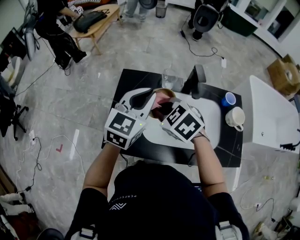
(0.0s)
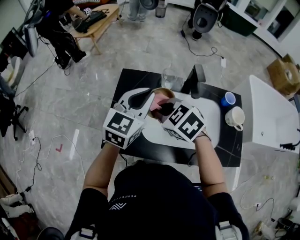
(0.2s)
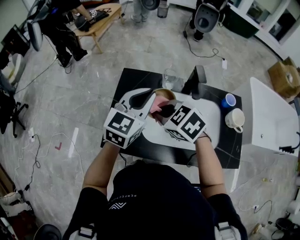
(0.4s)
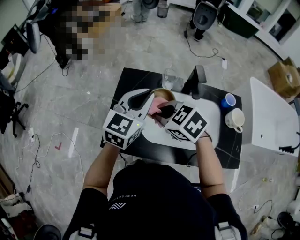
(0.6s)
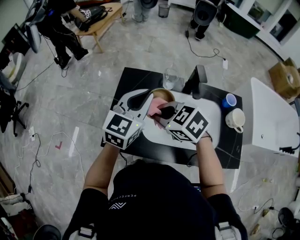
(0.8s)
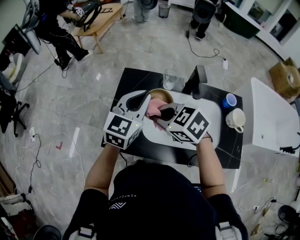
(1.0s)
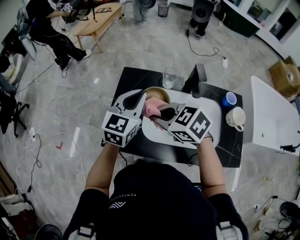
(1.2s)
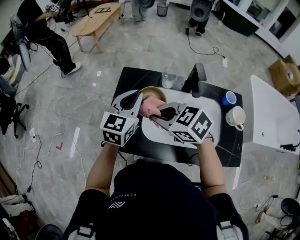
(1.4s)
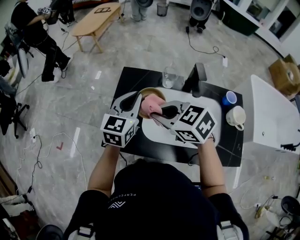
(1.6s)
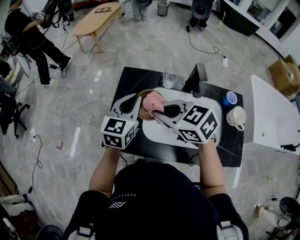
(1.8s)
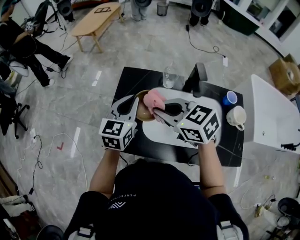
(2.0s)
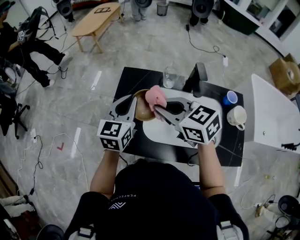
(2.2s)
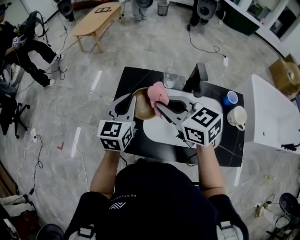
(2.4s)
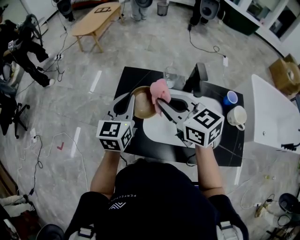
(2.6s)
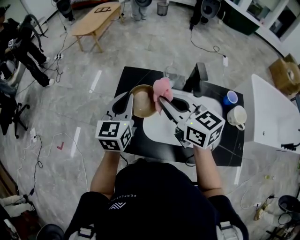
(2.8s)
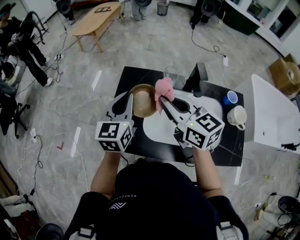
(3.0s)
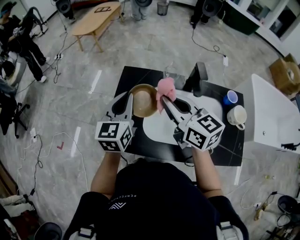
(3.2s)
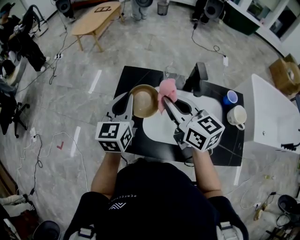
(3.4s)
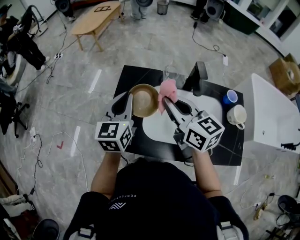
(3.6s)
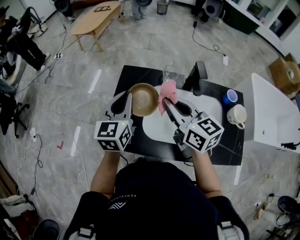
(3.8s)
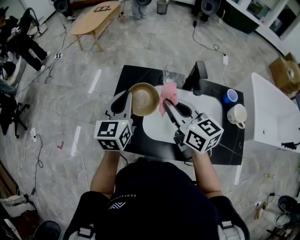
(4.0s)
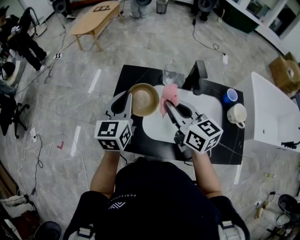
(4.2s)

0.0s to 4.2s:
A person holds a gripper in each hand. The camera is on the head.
0.0s to 1.4s: The left gripper ends up about 5 cm from where it was.
1.4s to 2.8s: The right gripper moves upward, approximately 5 cm, and changes its angle by approximately 40 degrees.
2.8s to 4.2s: The grippers move only a little.

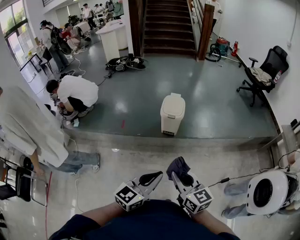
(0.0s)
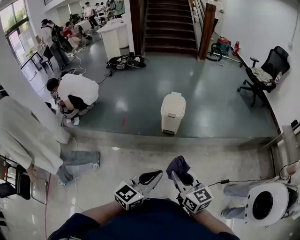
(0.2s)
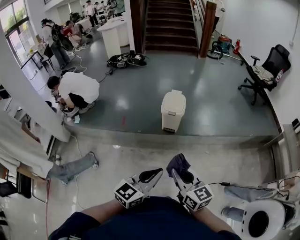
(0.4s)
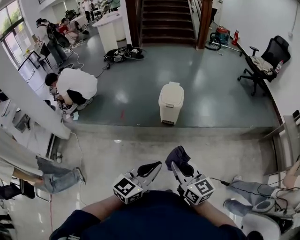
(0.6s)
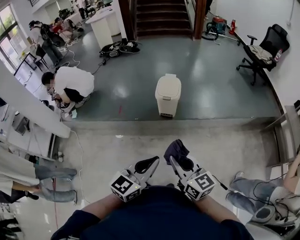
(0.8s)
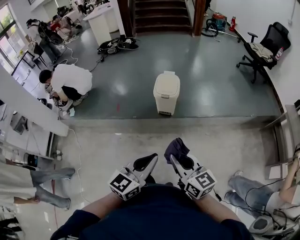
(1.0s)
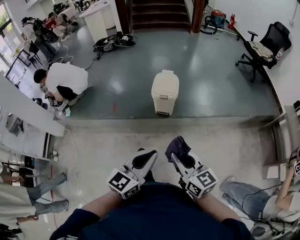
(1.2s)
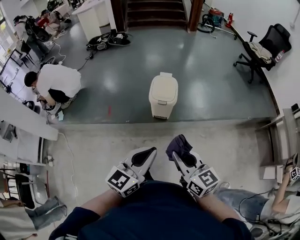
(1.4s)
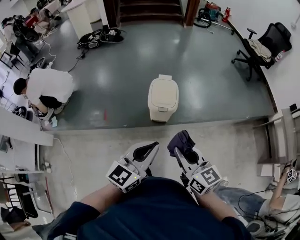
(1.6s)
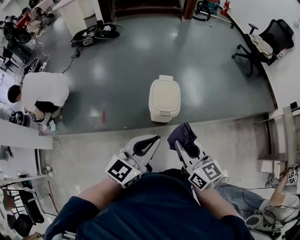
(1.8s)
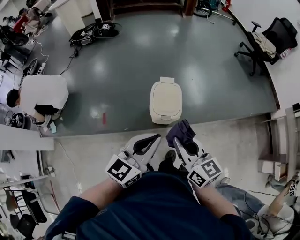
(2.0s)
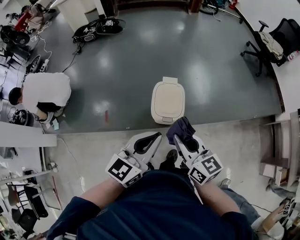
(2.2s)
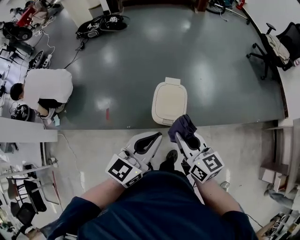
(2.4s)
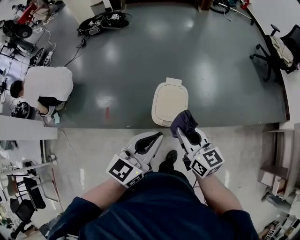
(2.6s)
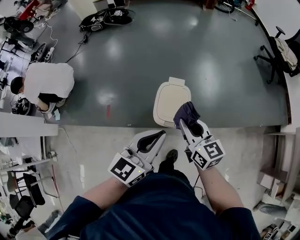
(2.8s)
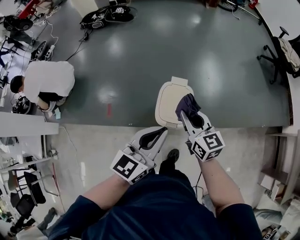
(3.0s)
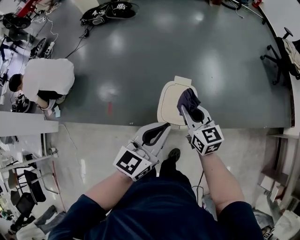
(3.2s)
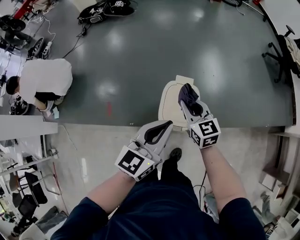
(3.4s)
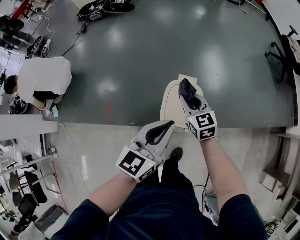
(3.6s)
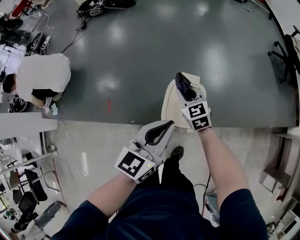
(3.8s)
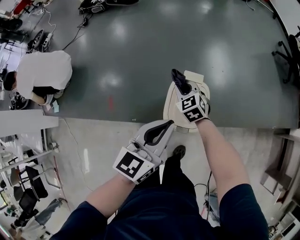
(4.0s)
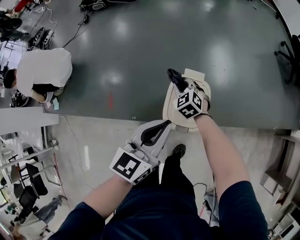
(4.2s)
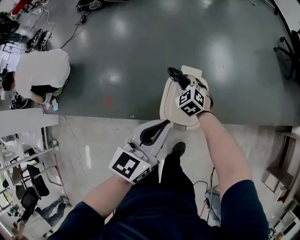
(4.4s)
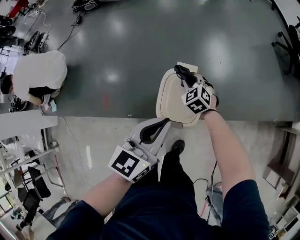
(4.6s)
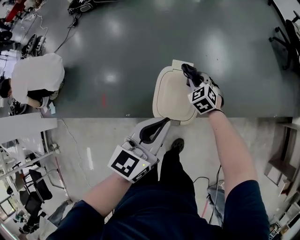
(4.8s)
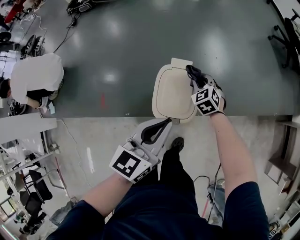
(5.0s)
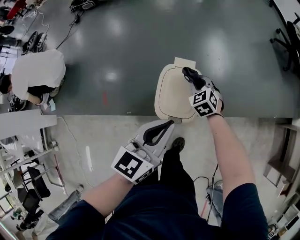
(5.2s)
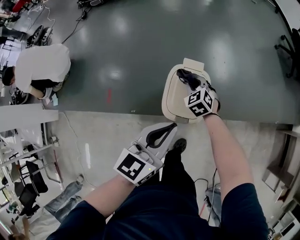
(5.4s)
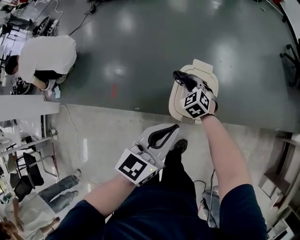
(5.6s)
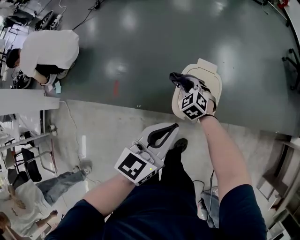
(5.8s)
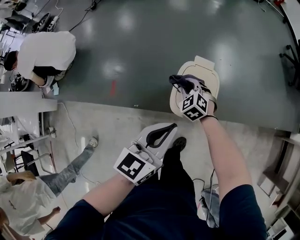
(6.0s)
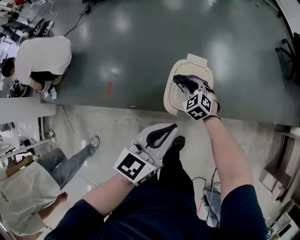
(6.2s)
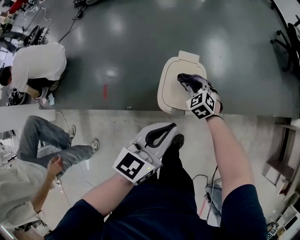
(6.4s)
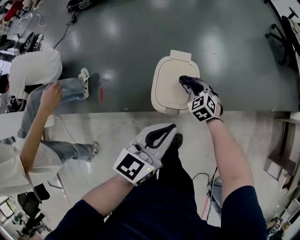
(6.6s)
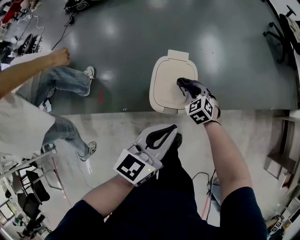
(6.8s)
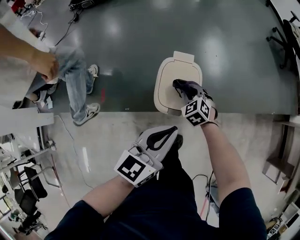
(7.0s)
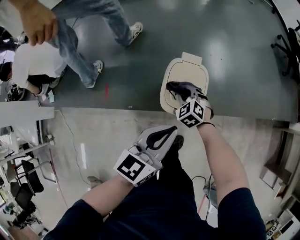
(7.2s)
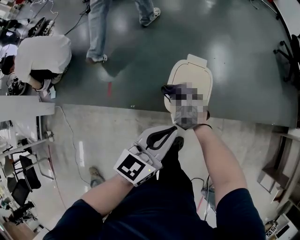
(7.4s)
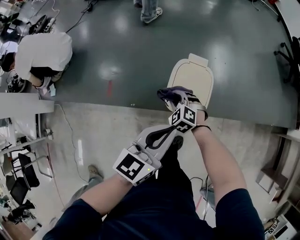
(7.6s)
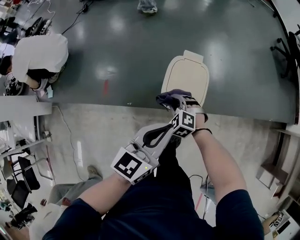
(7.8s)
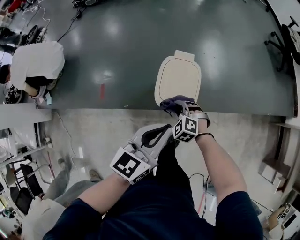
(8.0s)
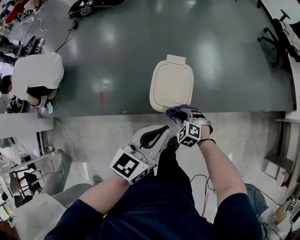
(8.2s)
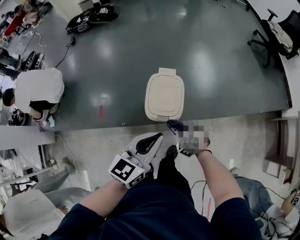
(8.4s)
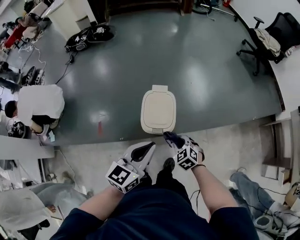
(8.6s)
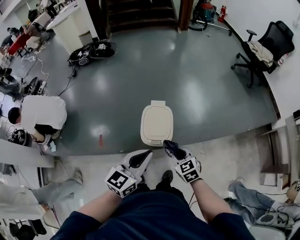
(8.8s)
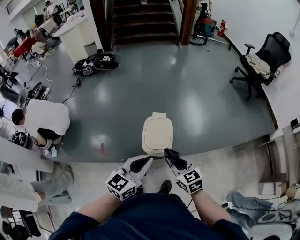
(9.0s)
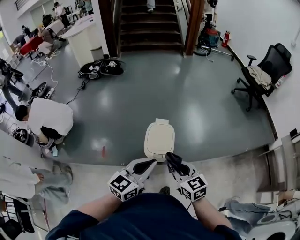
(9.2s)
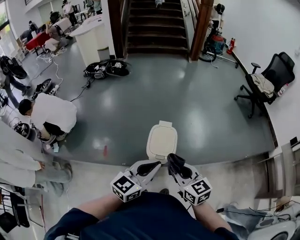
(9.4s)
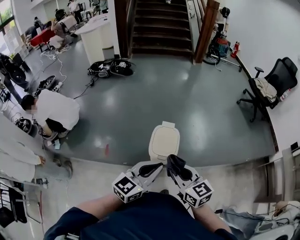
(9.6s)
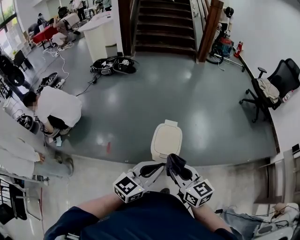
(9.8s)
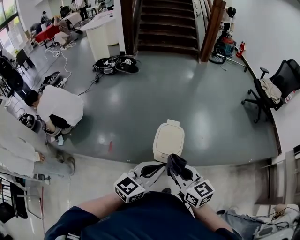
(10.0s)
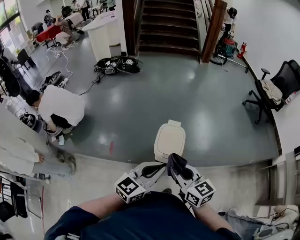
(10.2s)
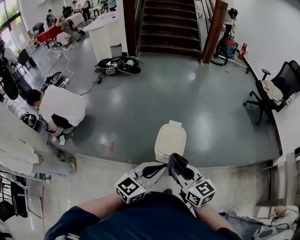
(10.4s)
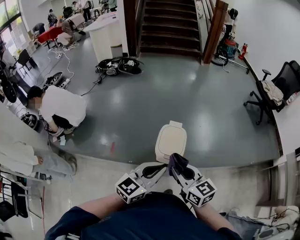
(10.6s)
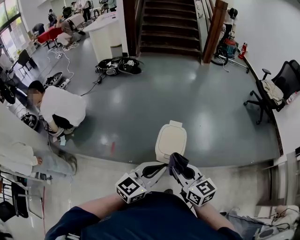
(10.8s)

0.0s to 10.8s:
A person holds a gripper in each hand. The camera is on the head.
0.0s to 1.6s: The two grippers go roughly 30 cm forward.
1.6s to 3.0s: Both grippers travel together forward, some 30 cm.
3.0s to 4.6s: The left gripper moves downward and forward, approximately 15 cm. Meanwhile the right gripper shifts roughly 30 cm downward and forward, and swivels some 50 degrees.
4.6s to 6.2s: The left gripper shifts some 5 cm backward; the right gripper swings left and right, roughly 15 cm each way, with 2 reversals.
6.2s to 7.8s: The right gripper goes roughly 10 cm backward, and travels to the right and back again, about 10 cm each way.
7.8s to 9.2s: The right gripper shifts some 35 cm upward, backward and to the right, and twists about 50 degrees clockwise, seen from behind. Meanwhile the left gripper is displaced upward by some 15 cm.
9.2s to 10.8s: The right gripper heads upward, covering roughly 5 cm.

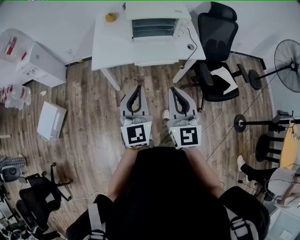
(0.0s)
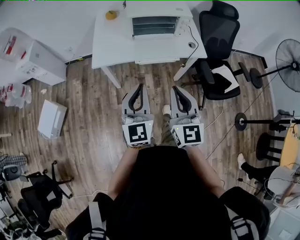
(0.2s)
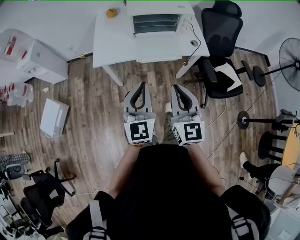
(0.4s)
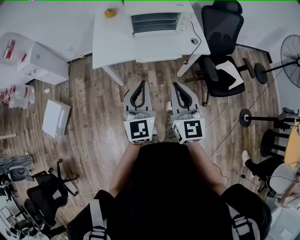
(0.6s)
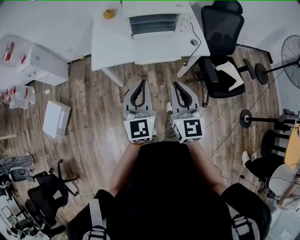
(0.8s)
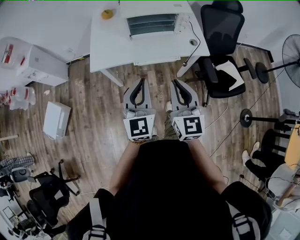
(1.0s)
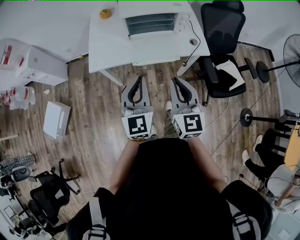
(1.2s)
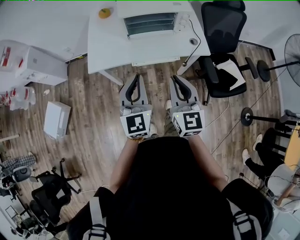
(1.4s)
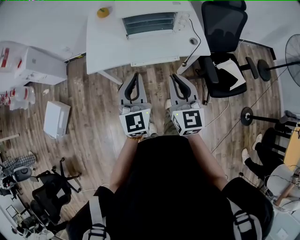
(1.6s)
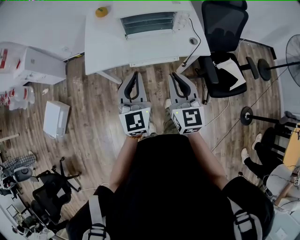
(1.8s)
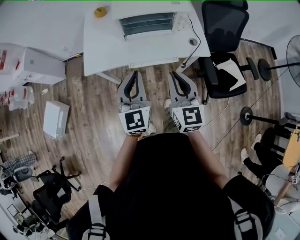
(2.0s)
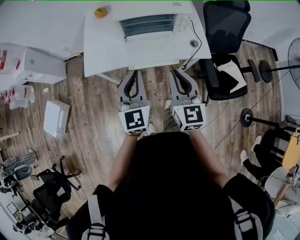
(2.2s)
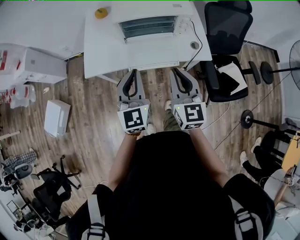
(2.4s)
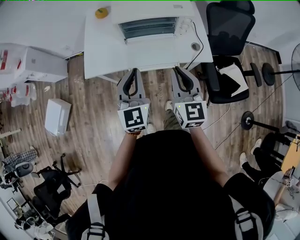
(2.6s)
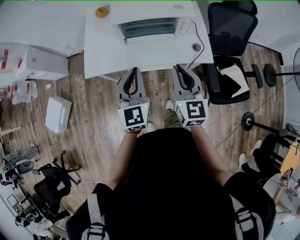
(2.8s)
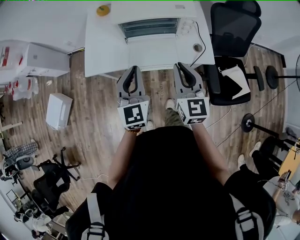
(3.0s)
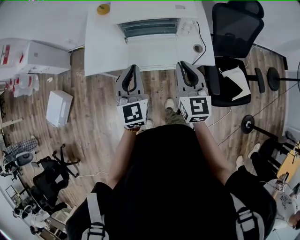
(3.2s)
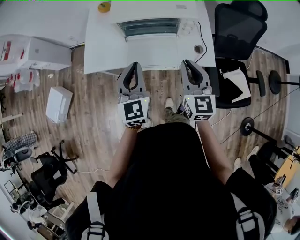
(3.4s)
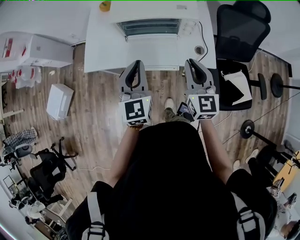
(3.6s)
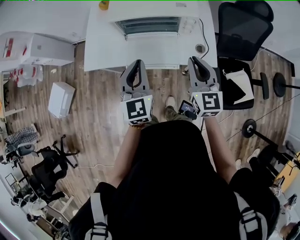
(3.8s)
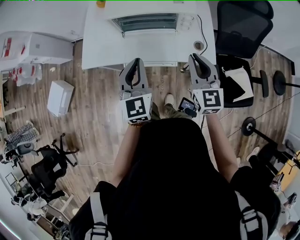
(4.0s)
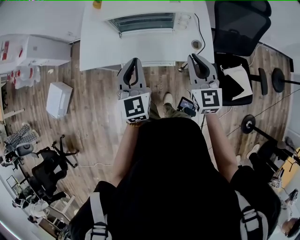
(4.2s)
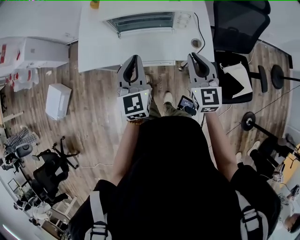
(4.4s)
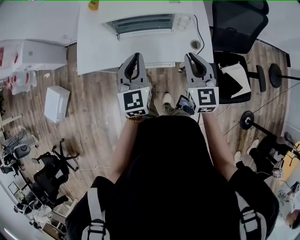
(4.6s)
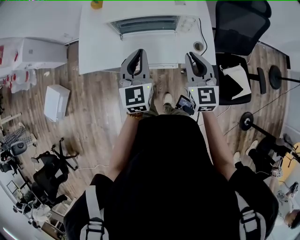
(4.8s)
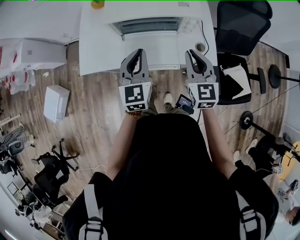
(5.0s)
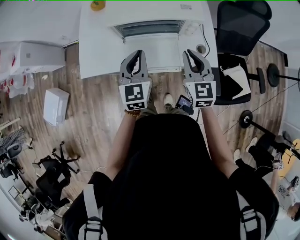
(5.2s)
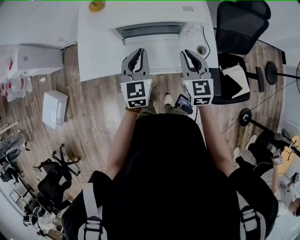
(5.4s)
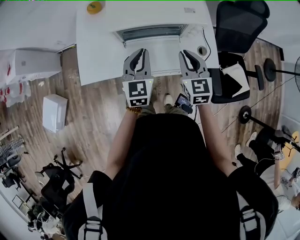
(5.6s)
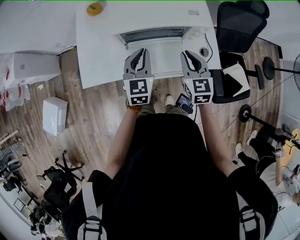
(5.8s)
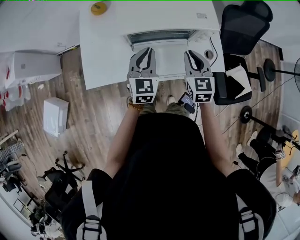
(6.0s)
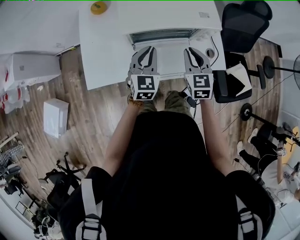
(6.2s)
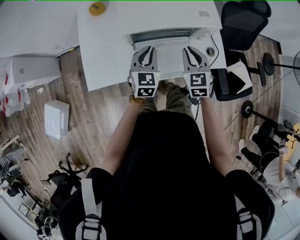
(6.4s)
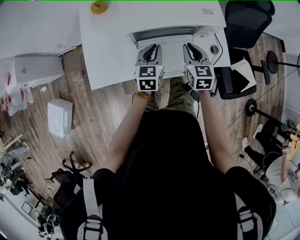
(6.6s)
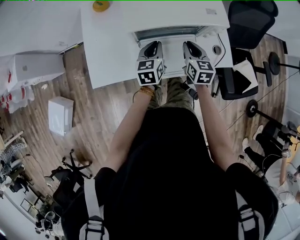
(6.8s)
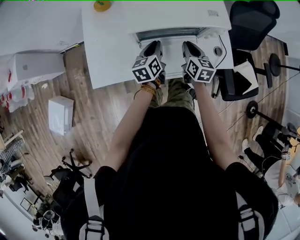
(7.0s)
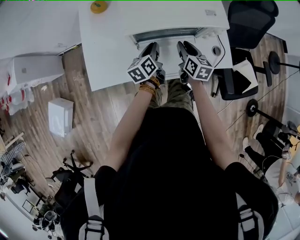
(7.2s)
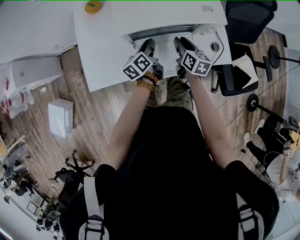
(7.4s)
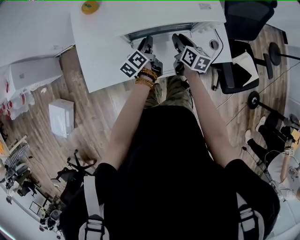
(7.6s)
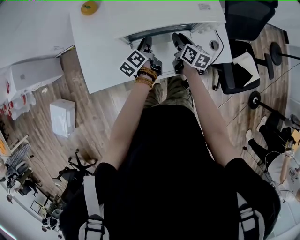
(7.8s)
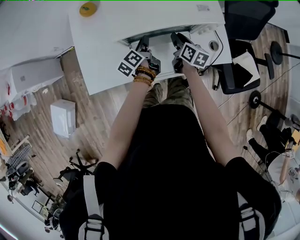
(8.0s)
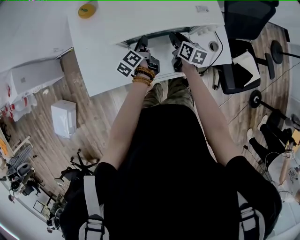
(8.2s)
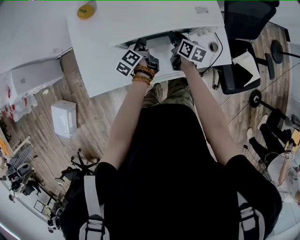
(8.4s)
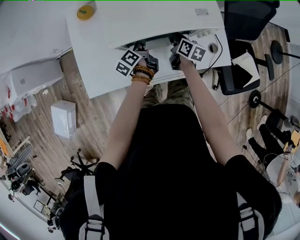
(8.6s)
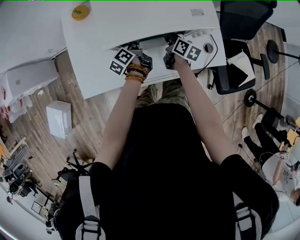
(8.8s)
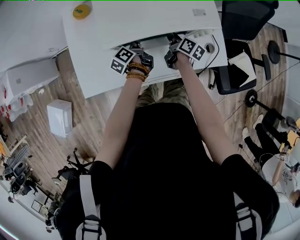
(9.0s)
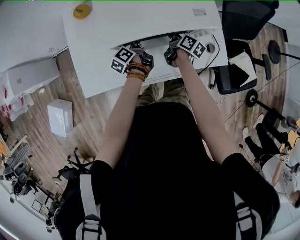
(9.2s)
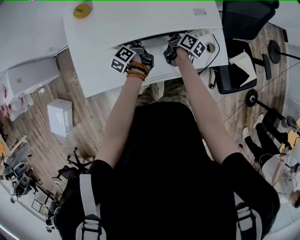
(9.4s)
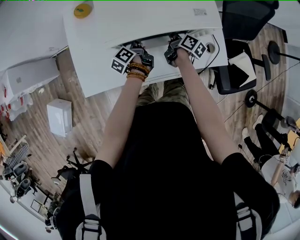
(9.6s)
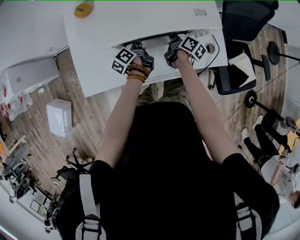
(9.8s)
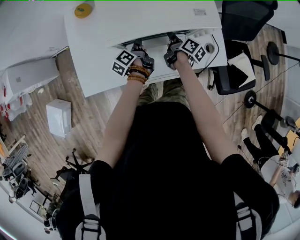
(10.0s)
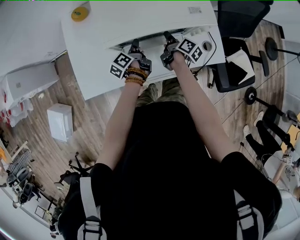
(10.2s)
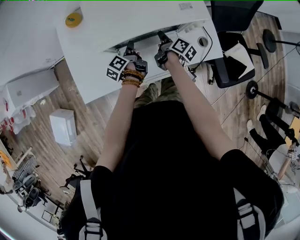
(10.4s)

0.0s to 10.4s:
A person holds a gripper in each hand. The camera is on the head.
0.0s to 1.4s: The left gripper heads forward, covering some 10 cm, while the right gripper shifts approximately 15 cm forward and to the right.
1.4s to 3.0s: Both grippers move forward and to the right, about 15 cm.
3.0s to 4.4s: The left gripper shifts approximately 5 cm to the right, while the right gripper moves to the right and downward, roughly 10 cm.
4.4s to 6.0s: The right gripper goes about 20 cm forward, to the left and downward, while the left gripper shifts approximately 20 cm forward, downward and to the left.
6.0s to 7.4s: The two grippers go roughly 15 cm downward and forward. The right gripper swivels approximately 40 degrees, and opens up, while the left gripper twists approximately 60 degrees counterclockwise, seen from behind.
7.4s to 9.0s: The left gripper travels downward and forward by approximately 10 cm, and swivels about 20 degrees. Meanwhile the right gripper heads forward and downward, covering some 10 cm, and rotates roughly 30 degrees.
9.0s to 10.4s: The grippers move only a little.
